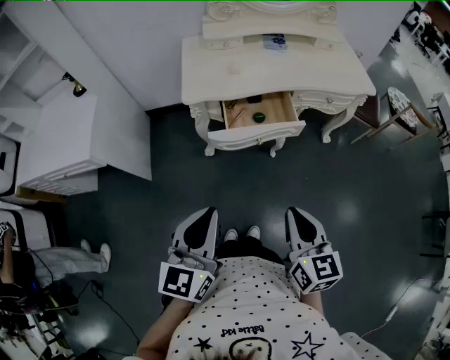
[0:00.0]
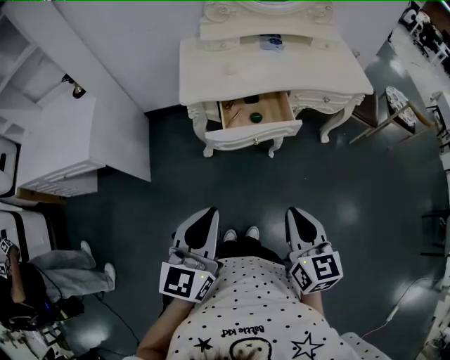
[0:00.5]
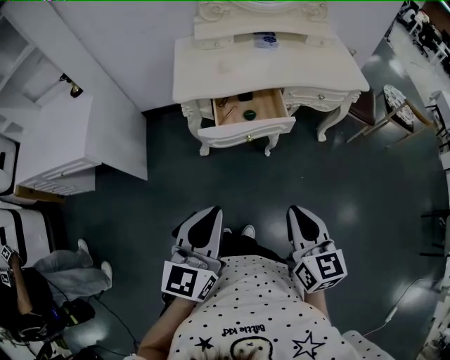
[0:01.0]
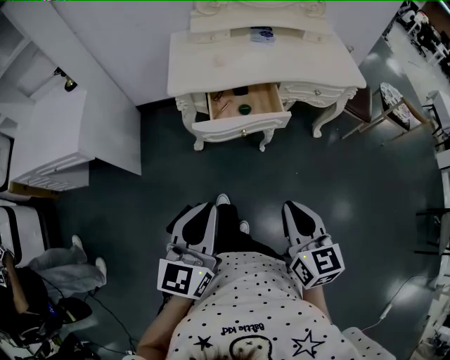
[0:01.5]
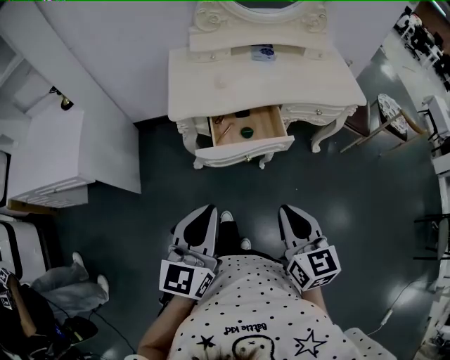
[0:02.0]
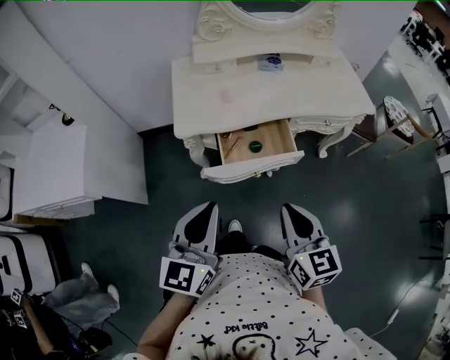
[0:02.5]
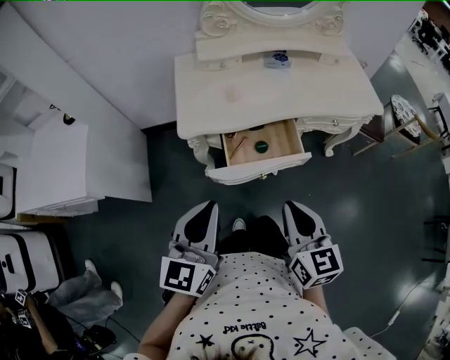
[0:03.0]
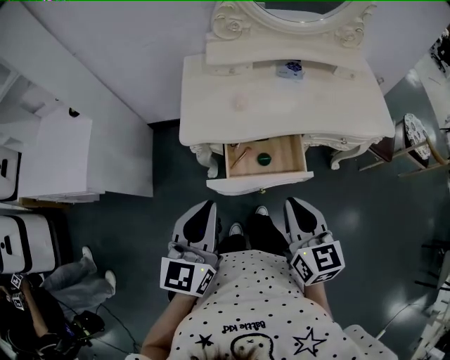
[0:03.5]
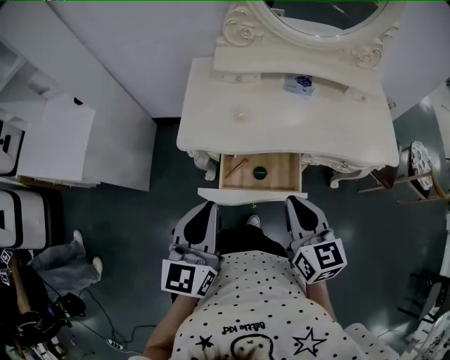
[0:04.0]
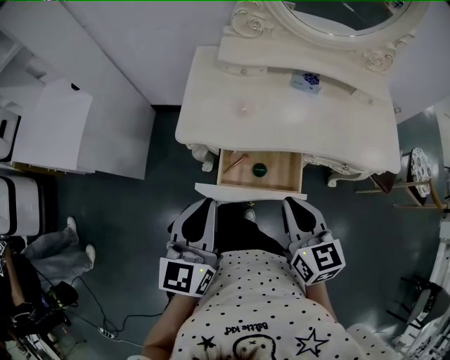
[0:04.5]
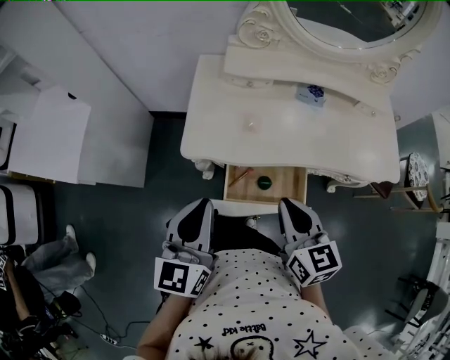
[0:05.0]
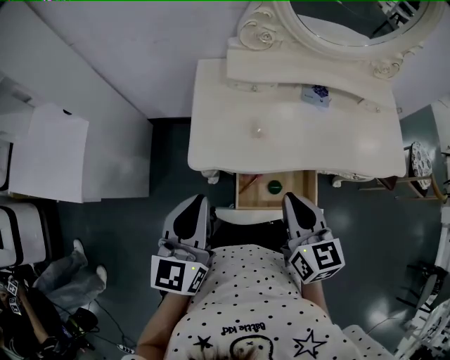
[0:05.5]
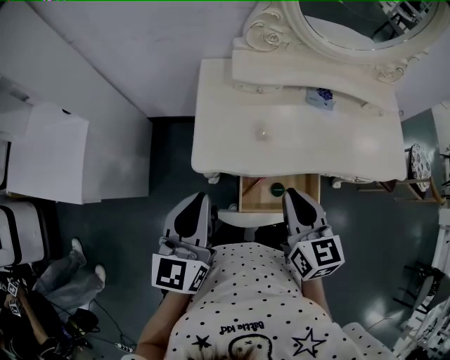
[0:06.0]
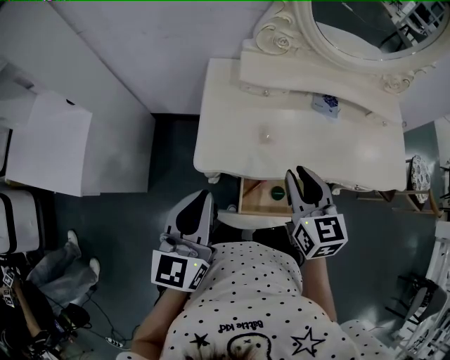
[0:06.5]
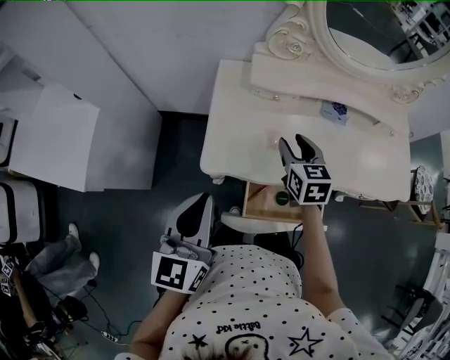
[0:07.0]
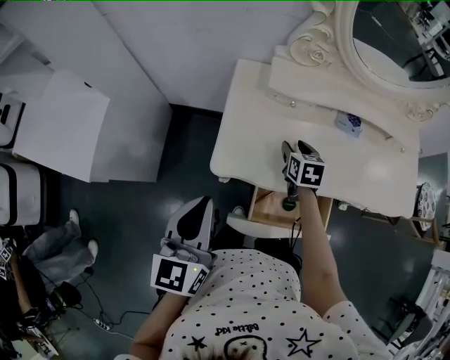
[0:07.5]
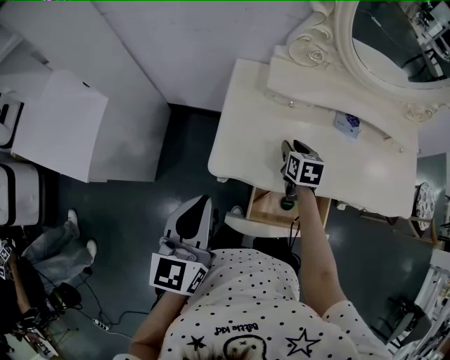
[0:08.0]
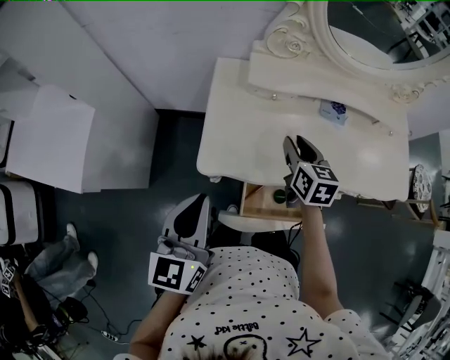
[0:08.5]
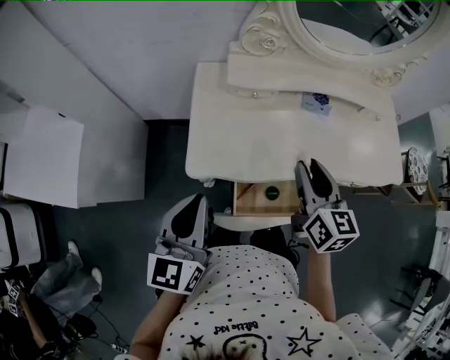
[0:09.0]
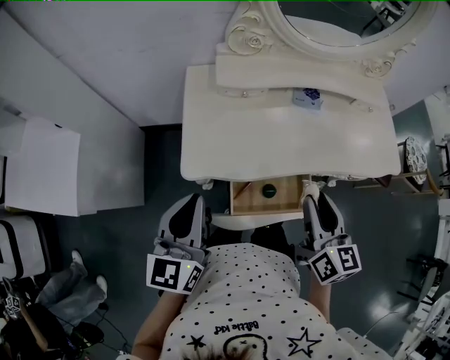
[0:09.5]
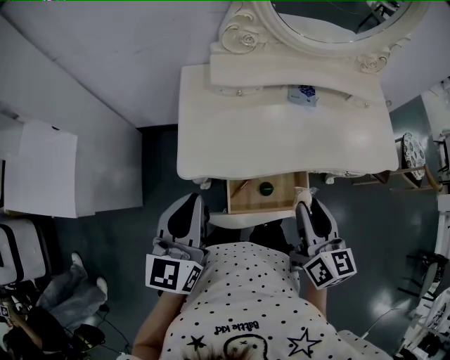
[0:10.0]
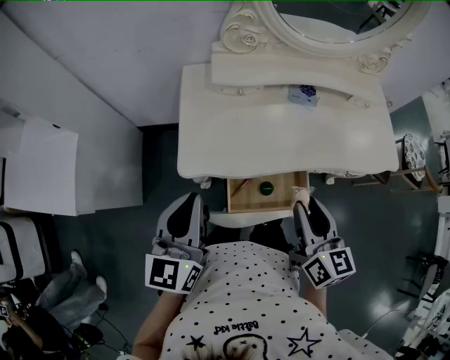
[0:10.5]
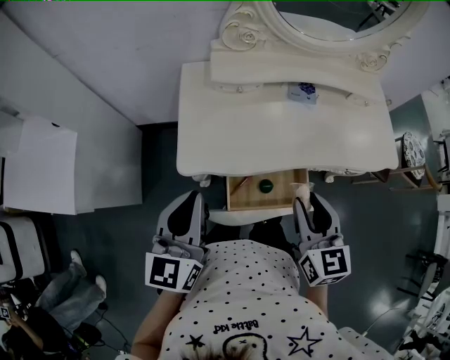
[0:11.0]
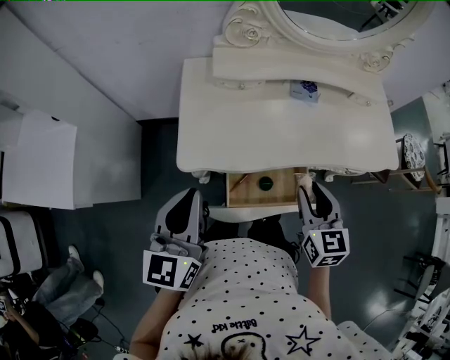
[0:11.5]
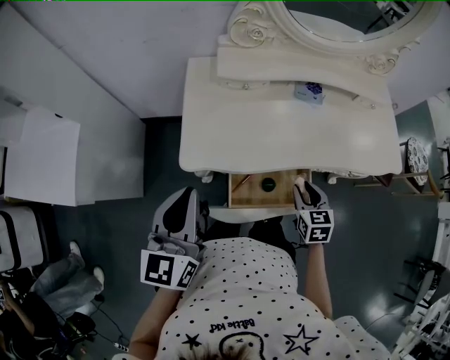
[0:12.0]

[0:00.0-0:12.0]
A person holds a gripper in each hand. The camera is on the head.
0:00.0 to 0:02.0: Both grippers travel together forward, some 5 cm.
0:02.0 to 0:04.0: Both grippers move forward, approximately 20 cm.
0:04.0 to 0:06.0: Both grippers move forward and to the left, approximately 15 cm.
0:06.0 to 0:08.0: The right gripper is displaced forward and downward by some 30 cm, rotates some 20 degrees, and opens up.
0:08.0 to 0:10.0: The left gripper heads to the right, covering roughly 5 cm, while the right gripper is displaced backward, upward and to the right by about 30 cm, and rotates about 30 degrees.
0:10.0 to 0:12.0: The right gripper heads downward, covering some 20 cm, and turns by roughly 30 degrees.

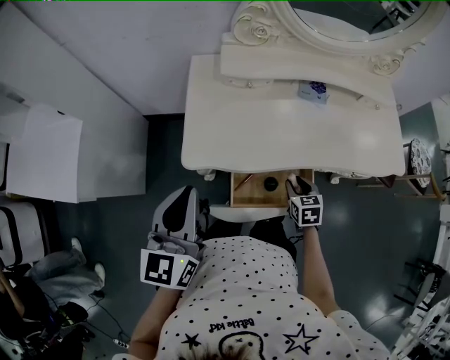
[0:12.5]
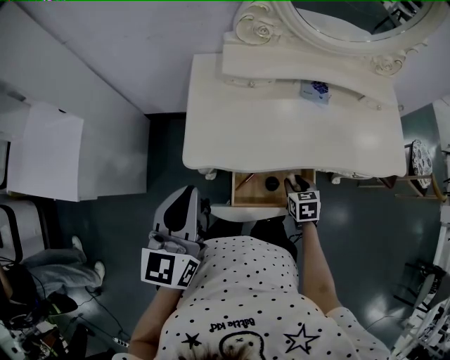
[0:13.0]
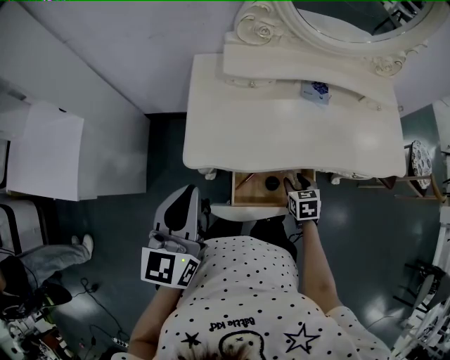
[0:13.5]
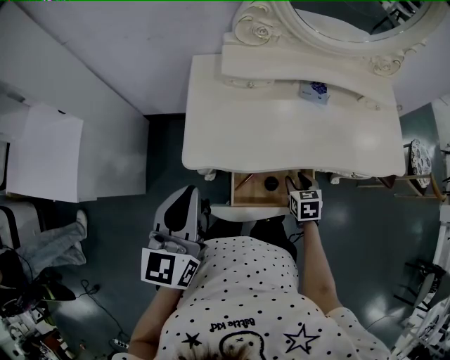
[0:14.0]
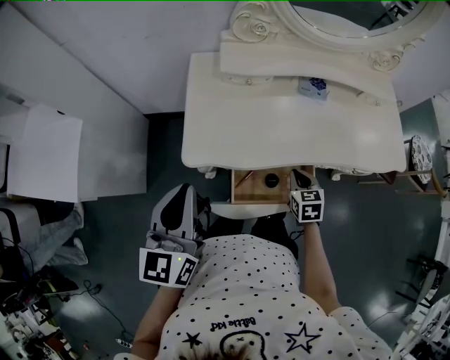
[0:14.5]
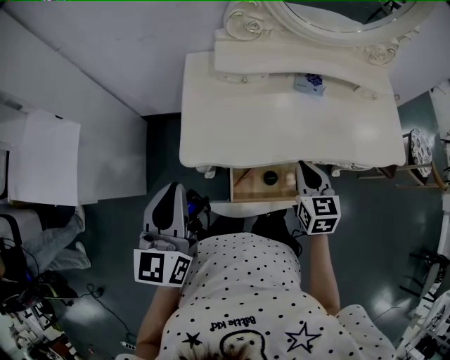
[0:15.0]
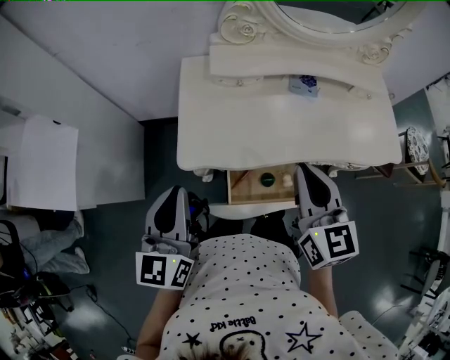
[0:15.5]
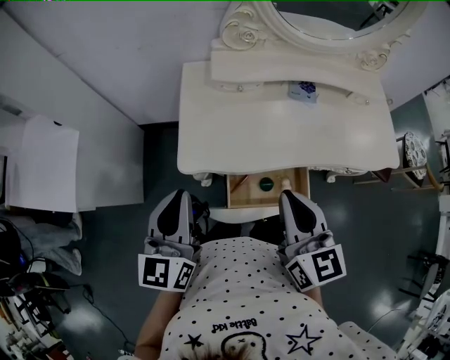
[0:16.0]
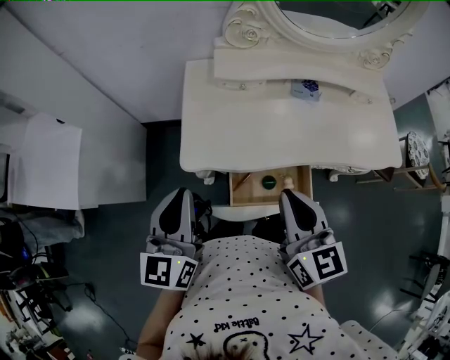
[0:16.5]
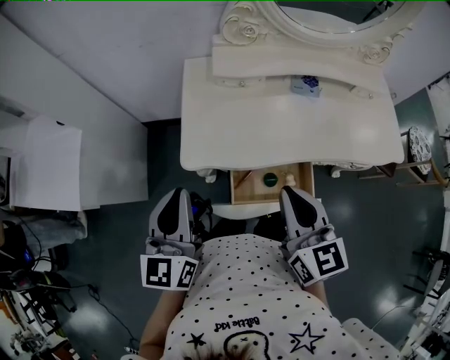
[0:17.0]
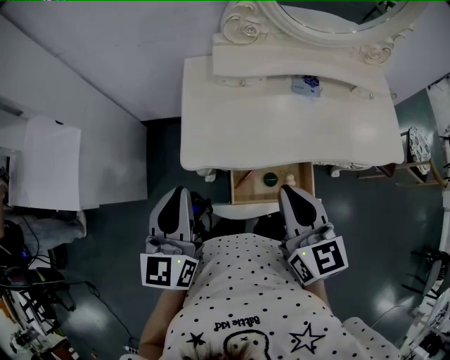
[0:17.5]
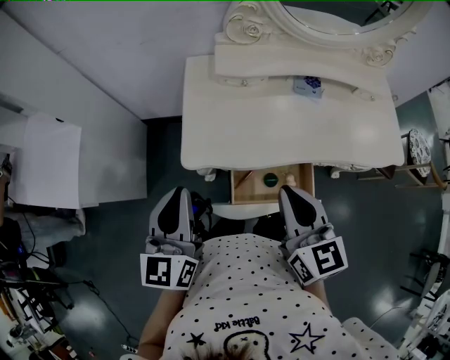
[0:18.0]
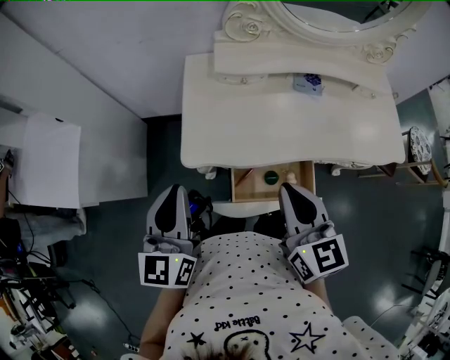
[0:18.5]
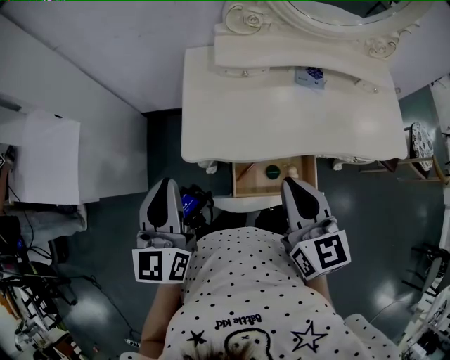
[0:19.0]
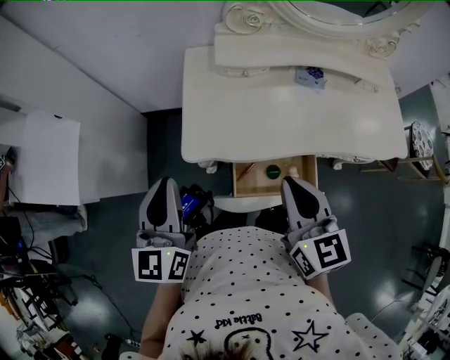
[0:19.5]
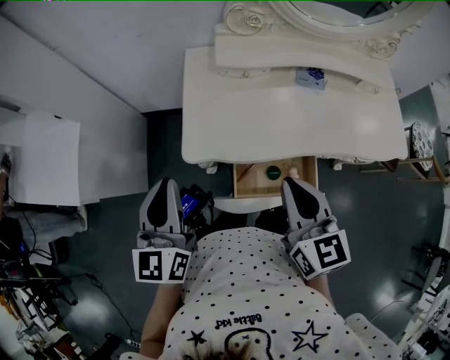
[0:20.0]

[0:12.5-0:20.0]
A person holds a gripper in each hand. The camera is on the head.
0:12.5 to 0:14.5: The right gripper closes up.
0:14.5 to 0:16.5: The right gripper heads upward, covering approximately 25 cm, and tips its fingers upward by approximately 30 degrees.
0:16.5 to 0:20.0: There are only small adjustments of the grippers.

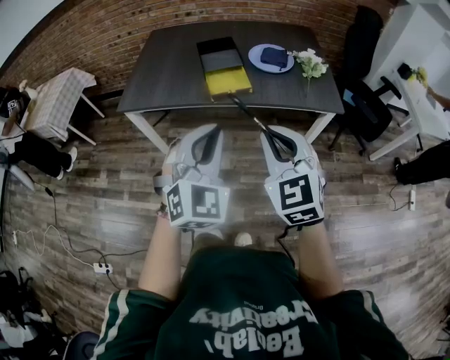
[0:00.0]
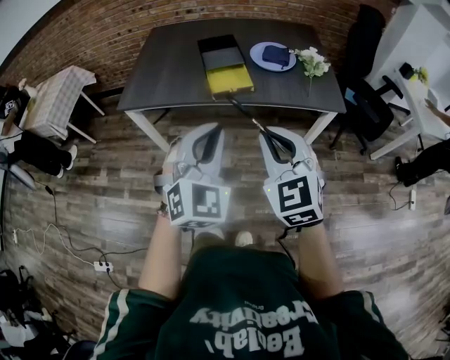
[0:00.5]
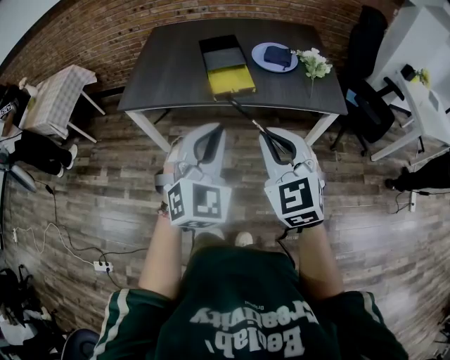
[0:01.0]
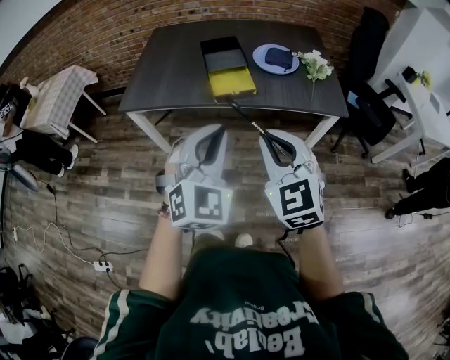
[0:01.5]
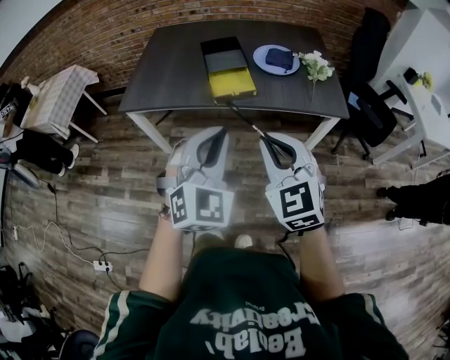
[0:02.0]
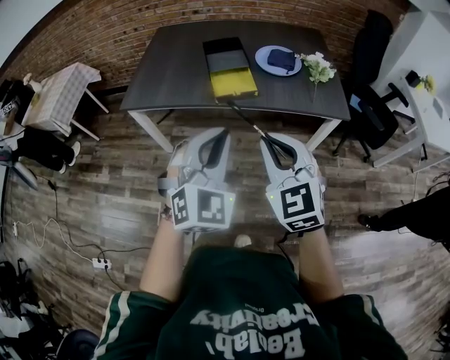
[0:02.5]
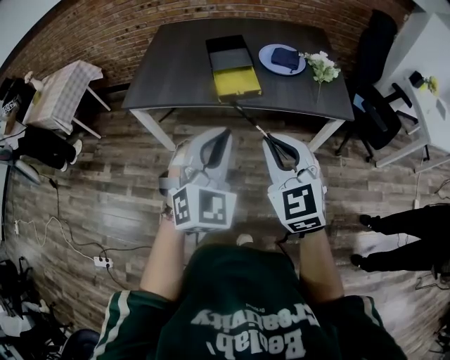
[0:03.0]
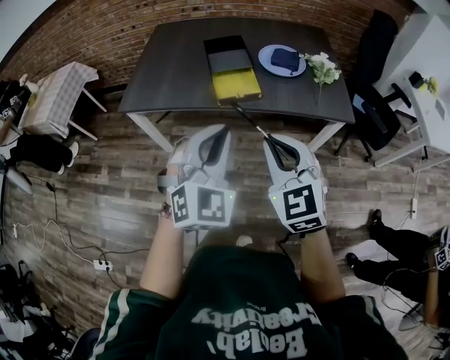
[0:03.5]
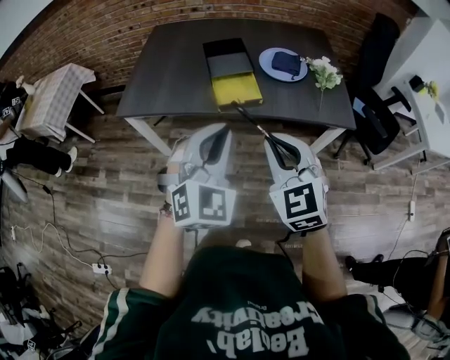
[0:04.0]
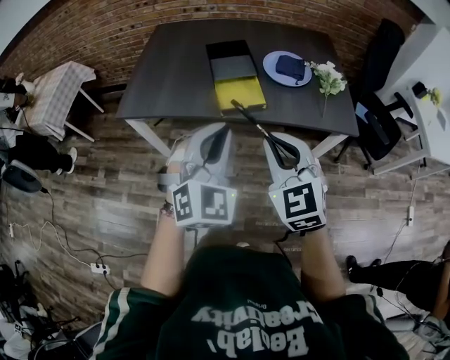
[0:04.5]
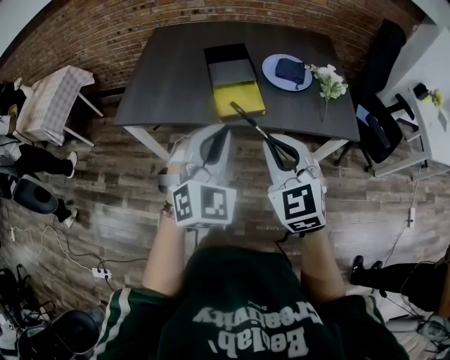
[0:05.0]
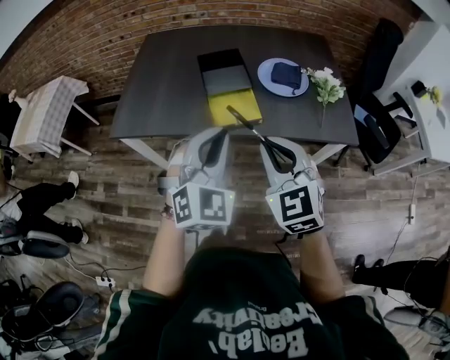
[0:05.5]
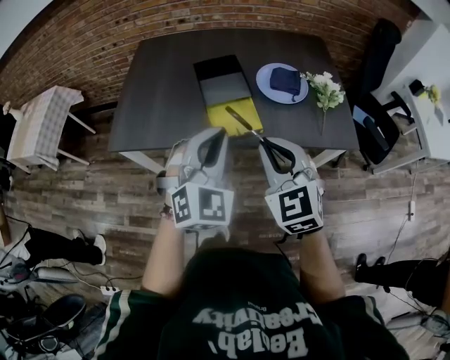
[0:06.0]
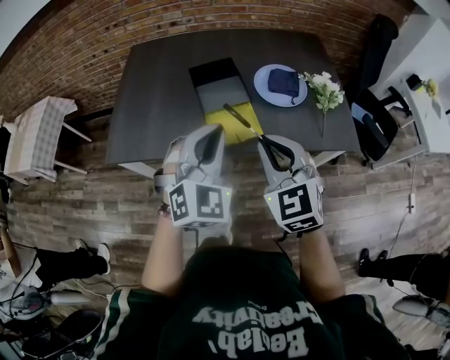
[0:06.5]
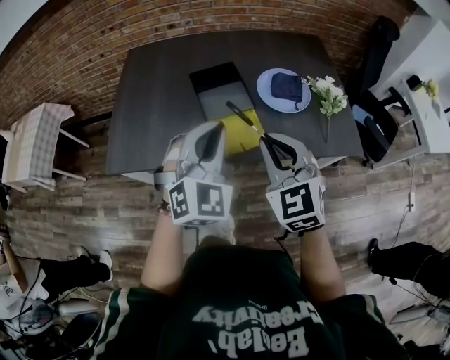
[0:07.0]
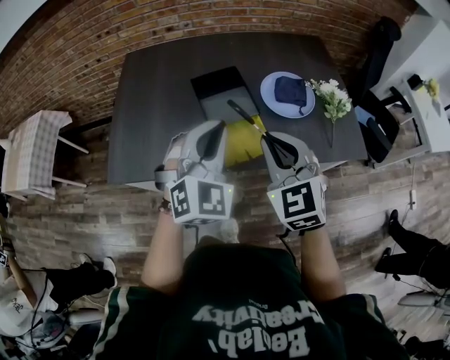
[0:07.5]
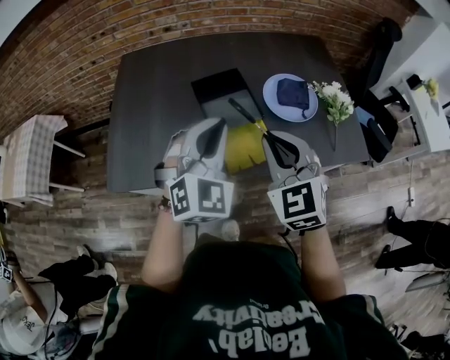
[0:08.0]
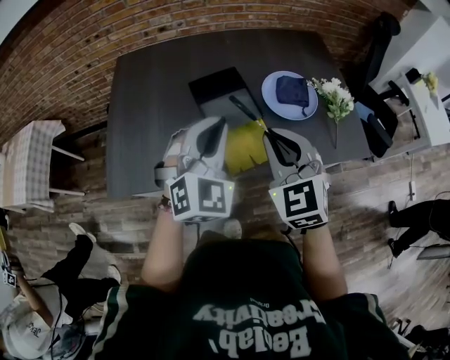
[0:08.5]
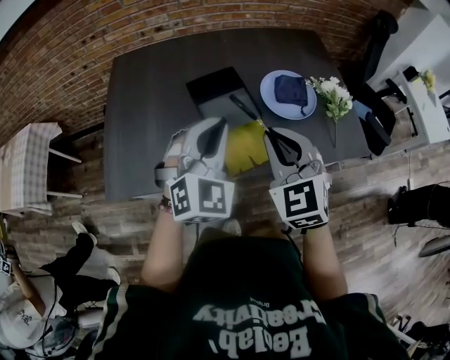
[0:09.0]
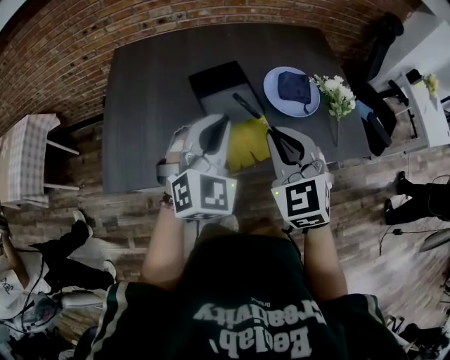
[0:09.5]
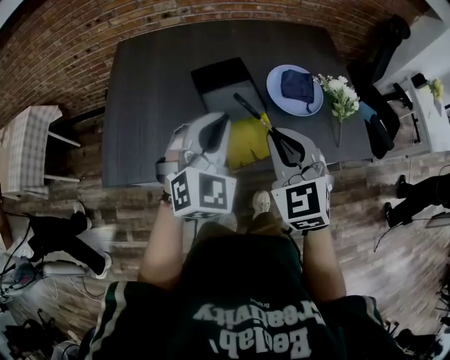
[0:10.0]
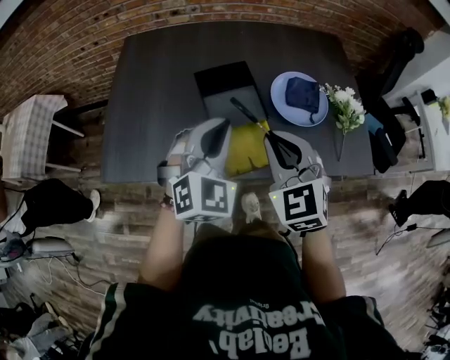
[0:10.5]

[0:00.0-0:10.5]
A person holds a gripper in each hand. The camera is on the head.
0:00.0 to 0:02.0: The grippers move only a little.
0:02.0 to 0:04.0: The two grippers go about 10 cm forward.
0:04.0 to 0:06.5: Both grippers travel together forward, some 20 cm.
0:06.5 to 0:08.5: The right gripper goes about 15 cm forward and to the left. The left gripper is displaced forward by approximately 15 cm.
0:08.5 to 0:10.5: The grippers move only a little.
